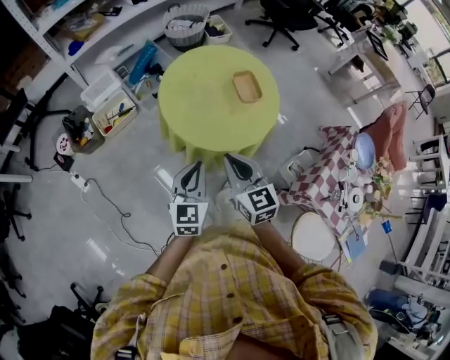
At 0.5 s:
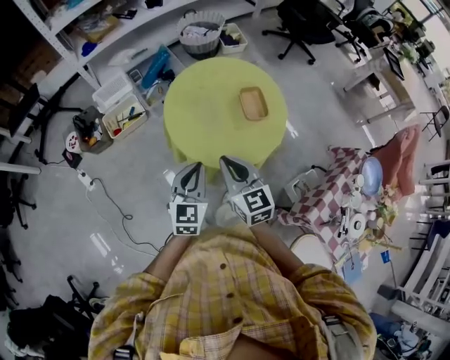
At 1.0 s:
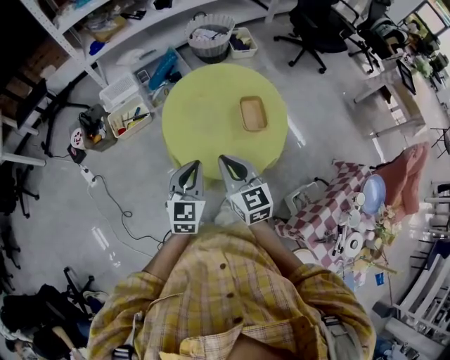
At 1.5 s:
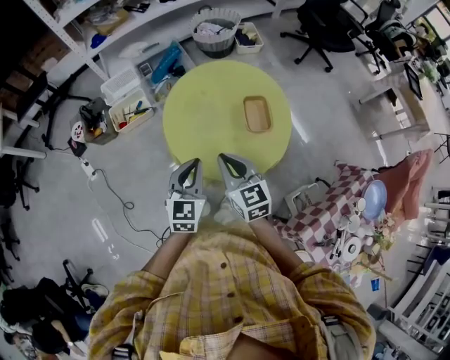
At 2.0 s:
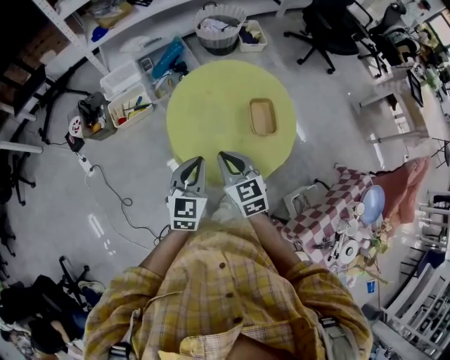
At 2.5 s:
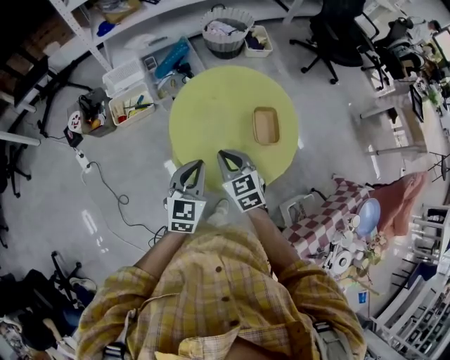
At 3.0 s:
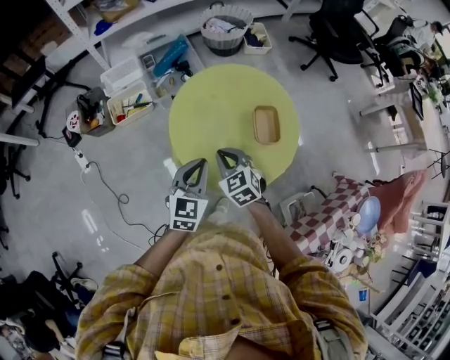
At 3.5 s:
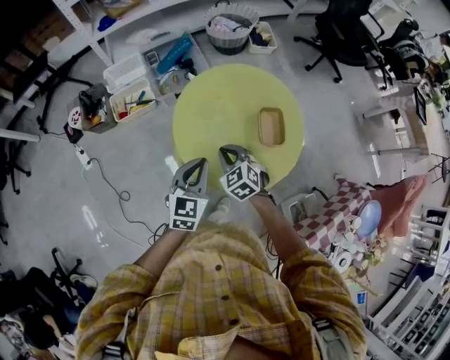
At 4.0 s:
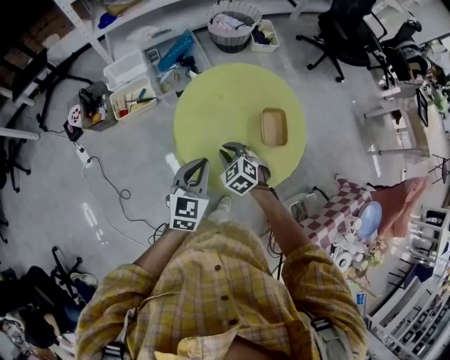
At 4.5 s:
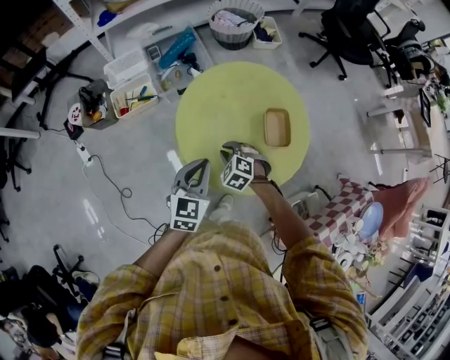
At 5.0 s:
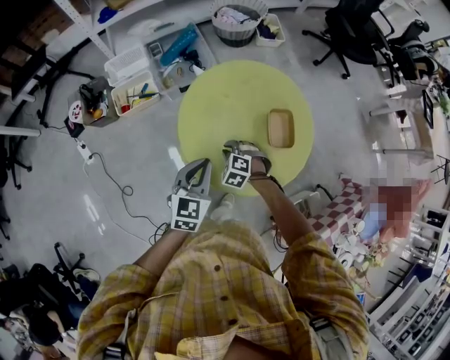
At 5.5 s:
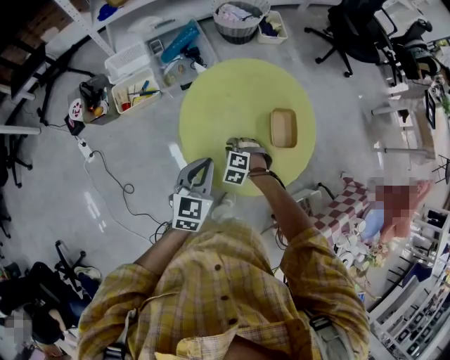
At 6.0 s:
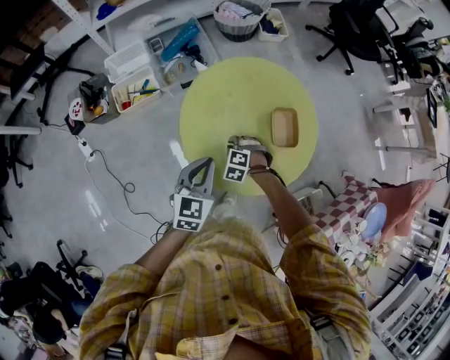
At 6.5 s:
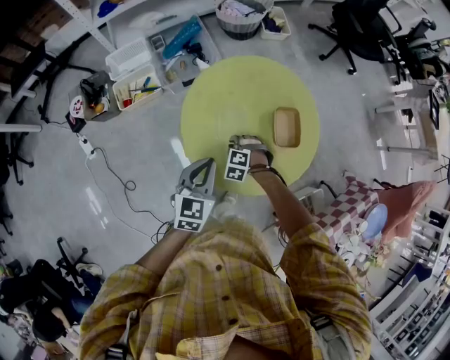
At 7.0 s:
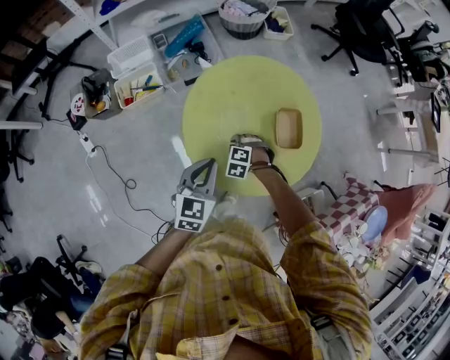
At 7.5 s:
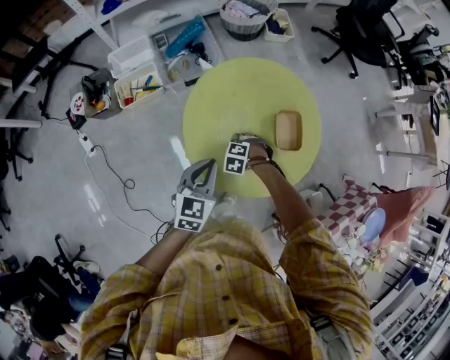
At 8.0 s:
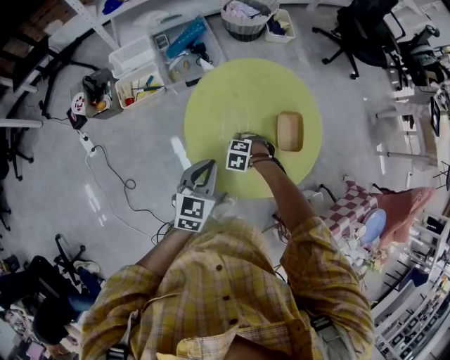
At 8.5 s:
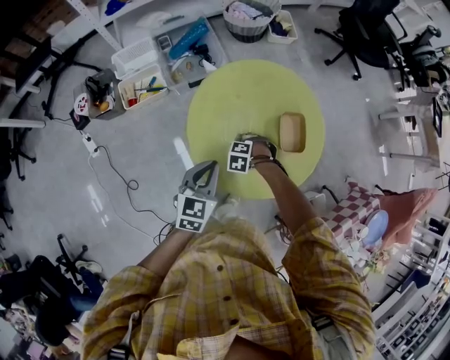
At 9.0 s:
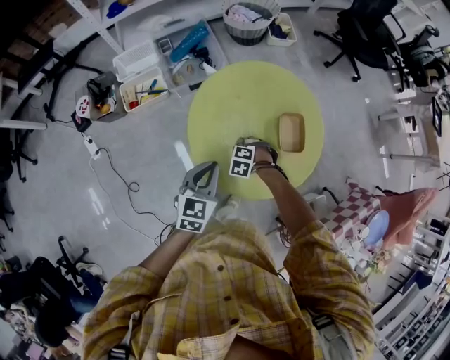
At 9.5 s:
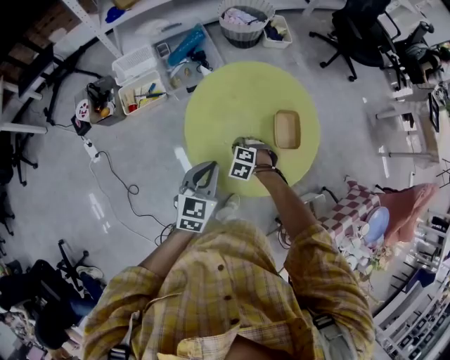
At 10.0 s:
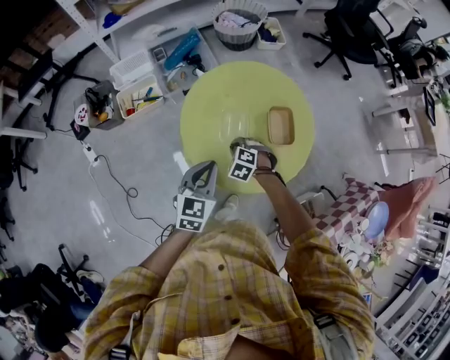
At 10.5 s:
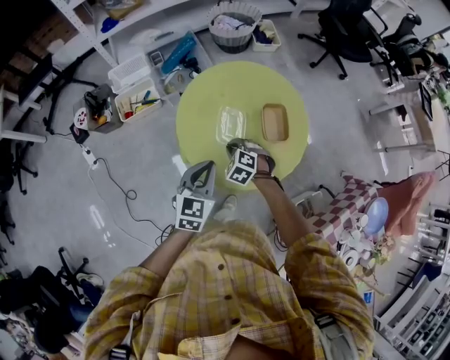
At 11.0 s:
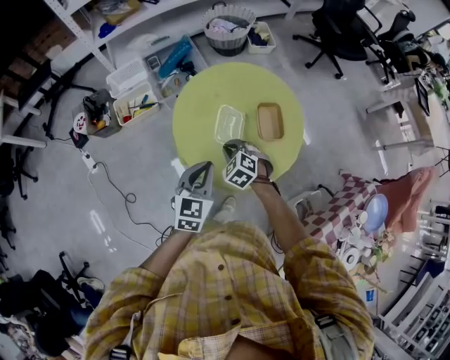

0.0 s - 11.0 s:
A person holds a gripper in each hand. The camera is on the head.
0.0 s - 2.0 s: The left gripper is displaced forward and to the right by about 15 cm; the right gripper is displaced forward by roughly 15 cm.
2.0 s - 3.5 s: The right gripper heads downward and forward, covering some 10 cm, and turns by approximately 30 degrees.
3.5 s - 5.5 s: The right gripper goes approximately 15 cm downward, and changes its angle by about 40 degrees.
5.5 s - 7.5 s: The grippers move only a little.
7.5 s - 9.0 s: Both grippers stay put.
9.0 s - 11.0 s: The left gripper ends up approximately 10 cm from where it was. The right gripper travels upward by roughly 15 cm, and changes its angle by some 30 degrees.

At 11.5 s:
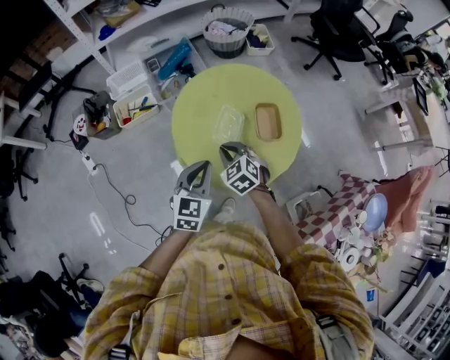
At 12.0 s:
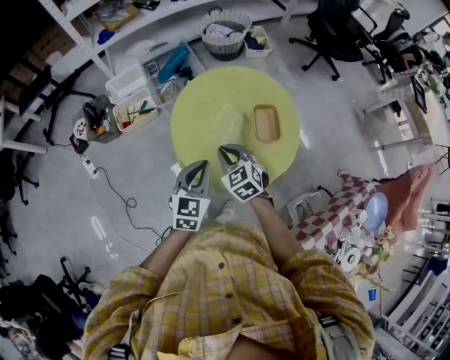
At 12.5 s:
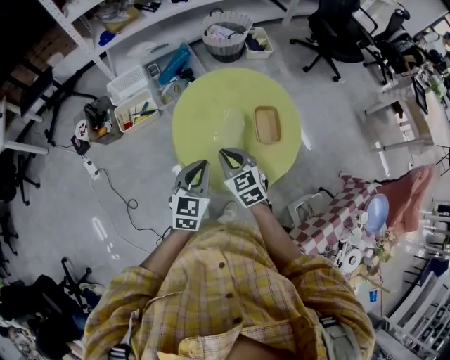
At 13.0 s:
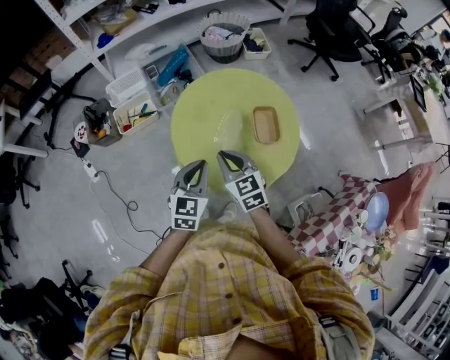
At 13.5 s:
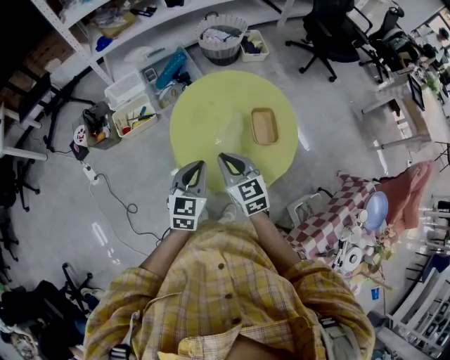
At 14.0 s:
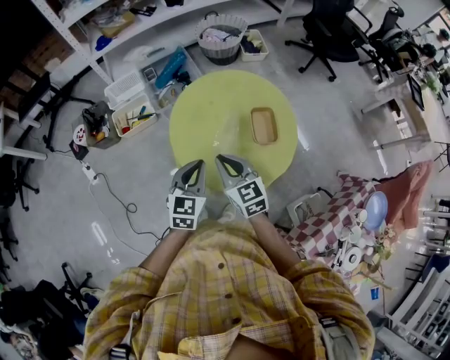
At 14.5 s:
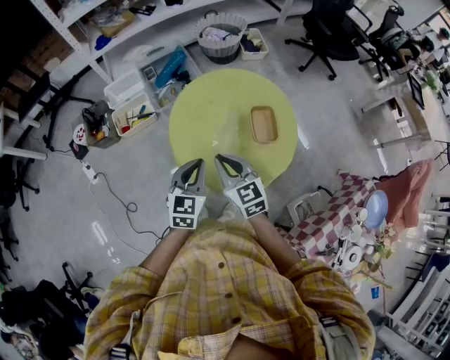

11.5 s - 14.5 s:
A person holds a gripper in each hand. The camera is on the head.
11.5 s - 13.0 s: The right gripper travels upward by roughly 10 cm, and changes its angle by roughly 30 degrees.
13.0 s - 14.5 s: The grippers move only a little.

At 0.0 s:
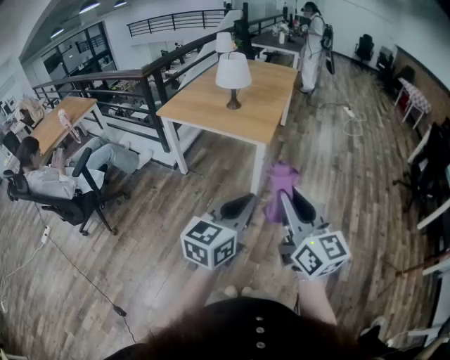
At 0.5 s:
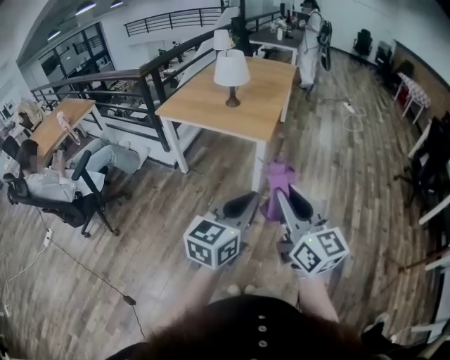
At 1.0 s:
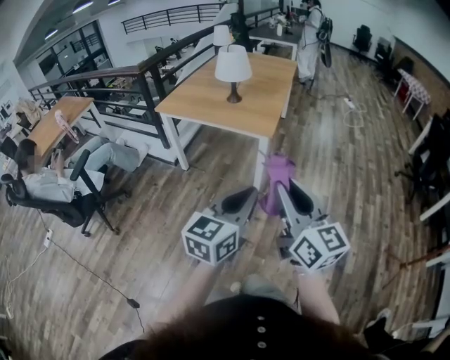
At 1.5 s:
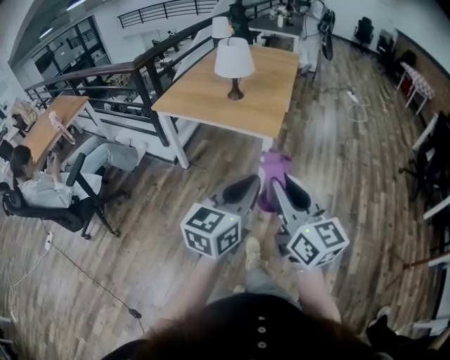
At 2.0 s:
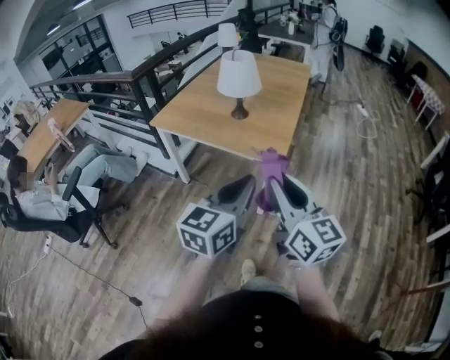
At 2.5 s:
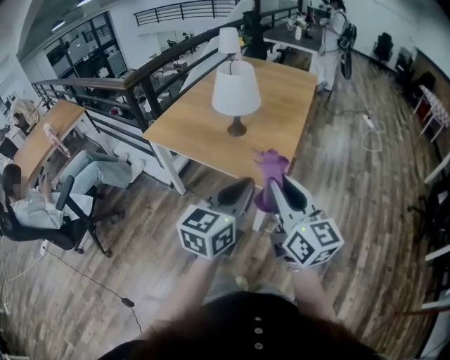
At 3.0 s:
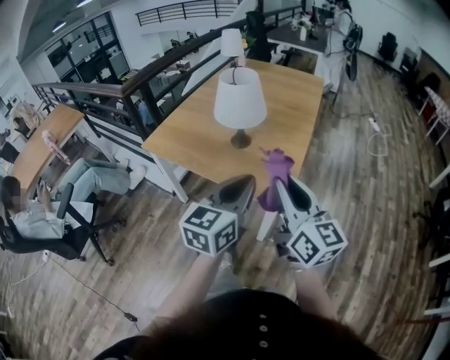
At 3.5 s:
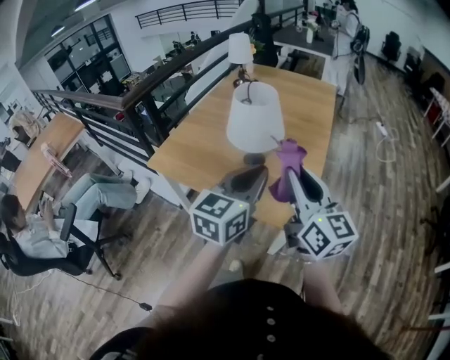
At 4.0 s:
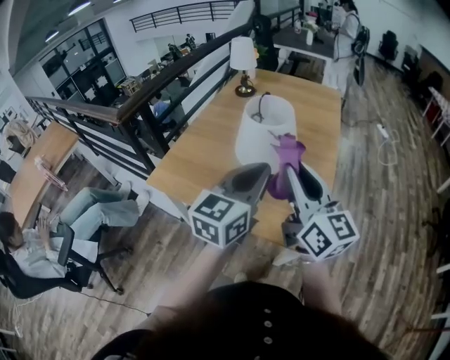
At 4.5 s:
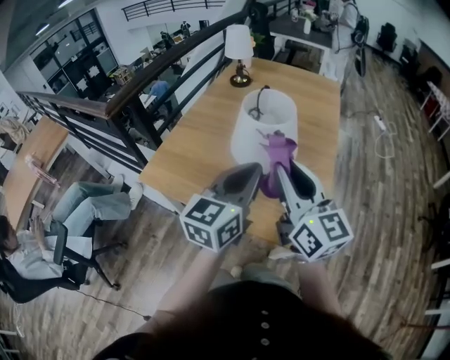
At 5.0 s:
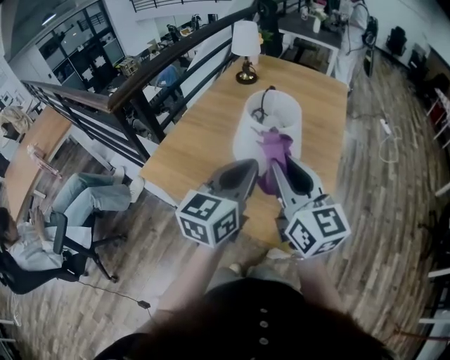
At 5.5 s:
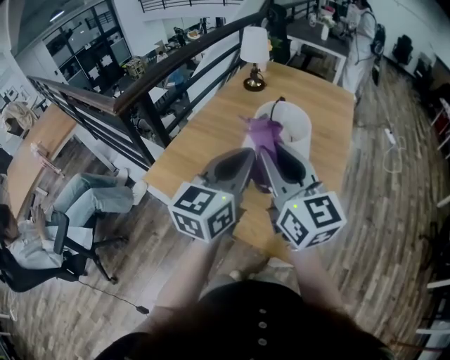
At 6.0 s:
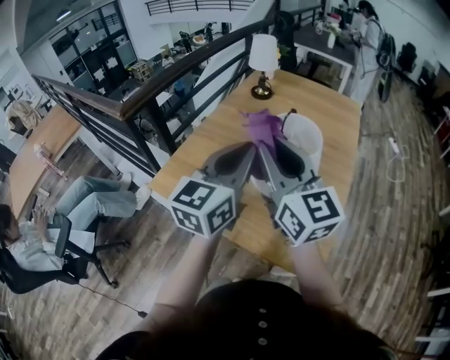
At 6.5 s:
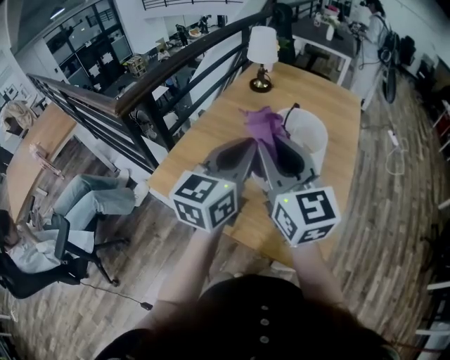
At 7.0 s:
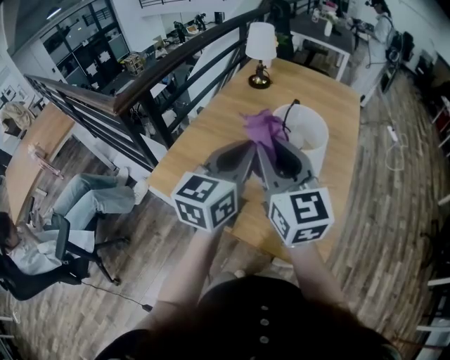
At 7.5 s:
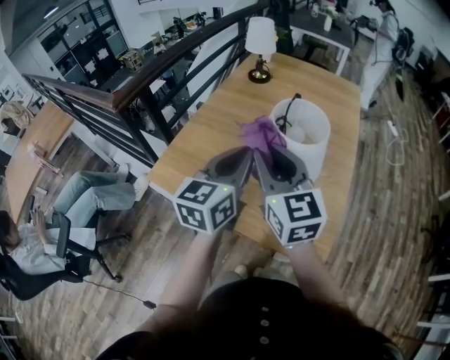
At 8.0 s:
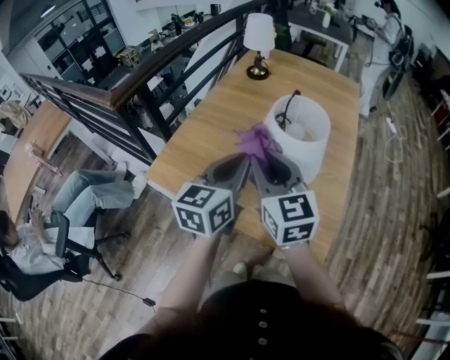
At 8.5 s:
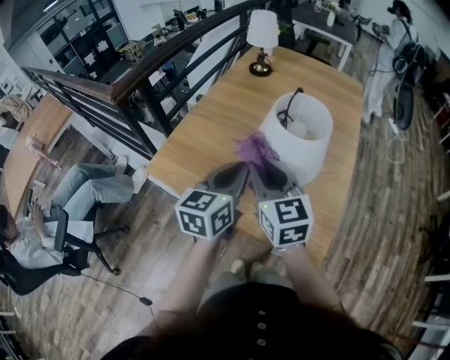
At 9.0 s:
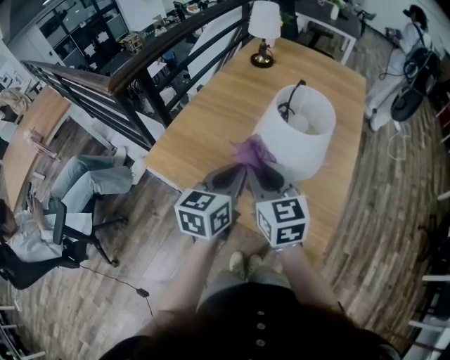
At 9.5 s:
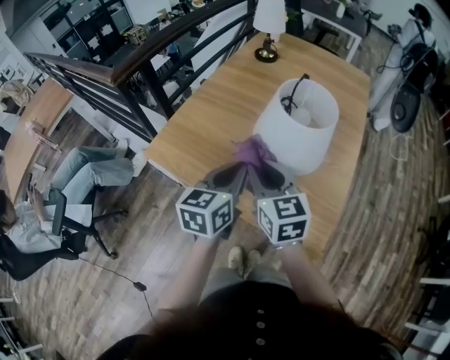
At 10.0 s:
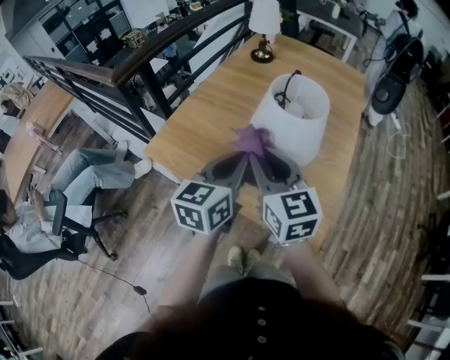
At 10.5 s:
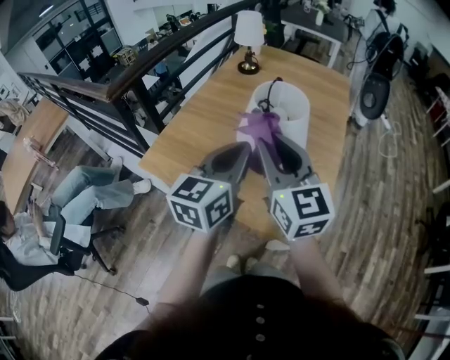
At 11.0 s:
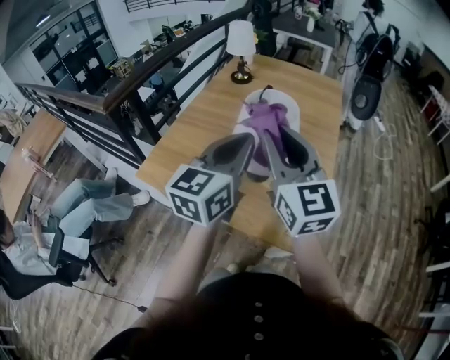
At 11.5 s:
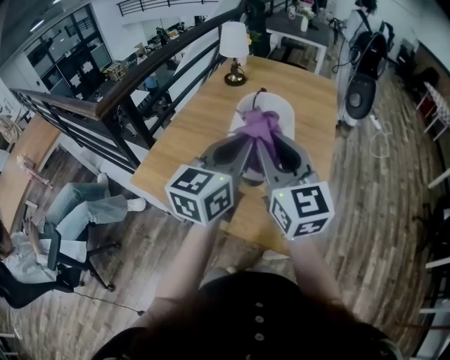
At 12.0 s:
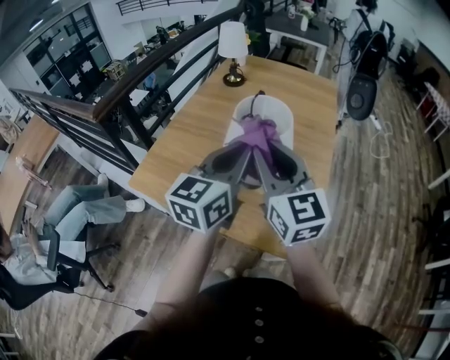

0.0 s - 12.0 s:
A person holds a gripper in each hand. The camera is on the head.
0.0 s - 2.0 s: Both grippers move forward, some 25 cm.
2.0 s - 4.0 s: The pair of grippers is taken forward, approximately 40 cm.
4.0 s - 6.0 s: The right gripper goes about 15 cm to the left and forward; the left gripper heads forward and to the left, covering roughly 15 cm.
6.0 s - 8.0 s: Both grippers travel together downward, about 10 cm.
8.0 s - 10.0 s: The right gripper moves approximately 10 cm downward and comes back.
10.0 s - 12.0 s: The two grippers go roughly 10 cm upward and to the right.

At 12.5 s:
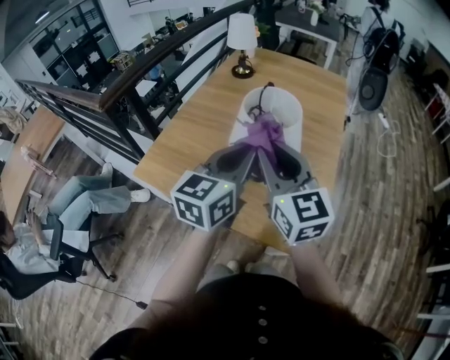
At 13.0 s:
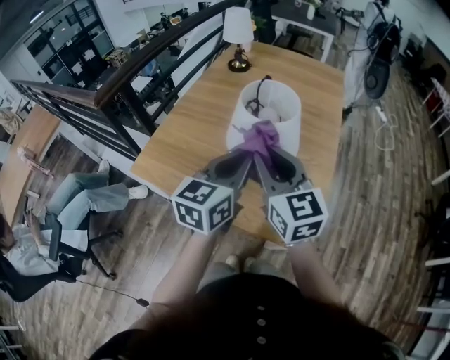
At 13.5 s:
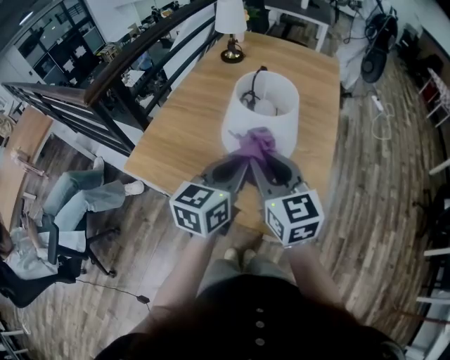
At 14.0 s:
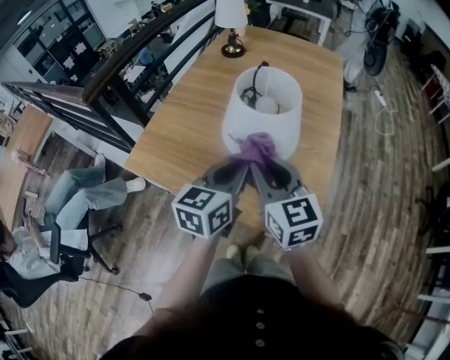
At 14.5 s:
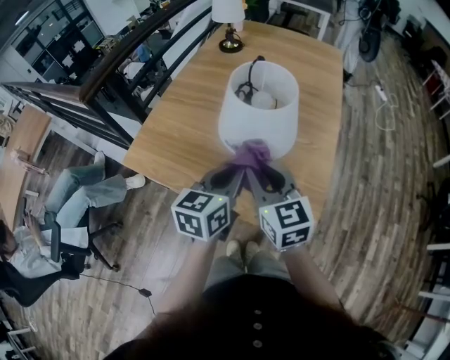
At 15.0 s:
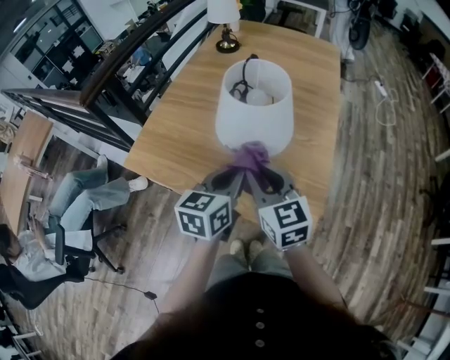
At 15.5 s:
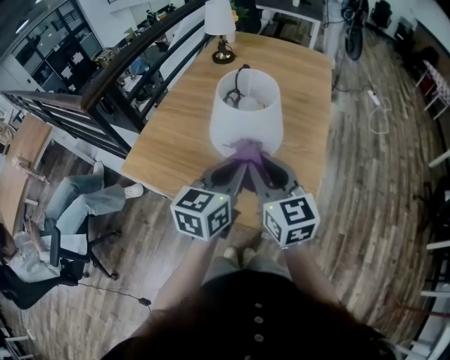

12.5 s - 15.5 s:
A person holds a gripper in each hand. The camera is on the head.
12.5 s - 14.0 s: Both grippers move downward, roughly 10 cm.
14.0 s - 15.5 s: The grippers stay close to where they were, moving slightly.
